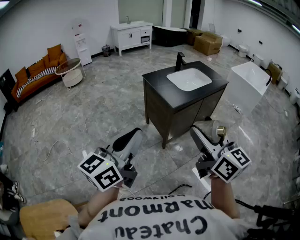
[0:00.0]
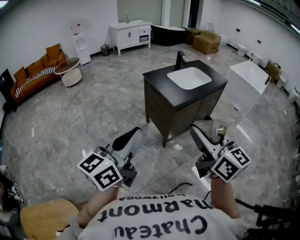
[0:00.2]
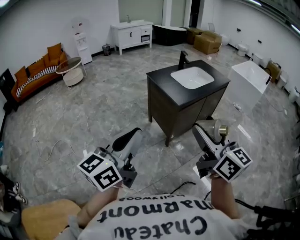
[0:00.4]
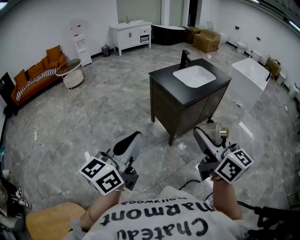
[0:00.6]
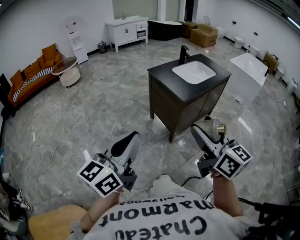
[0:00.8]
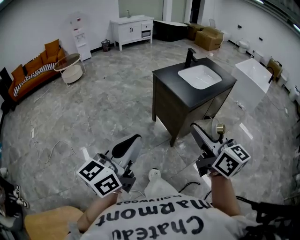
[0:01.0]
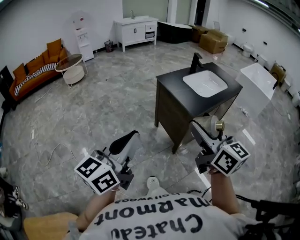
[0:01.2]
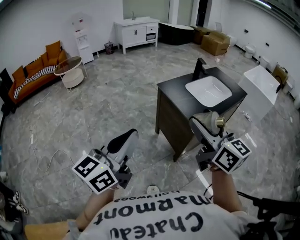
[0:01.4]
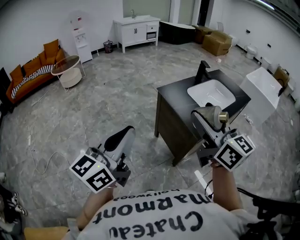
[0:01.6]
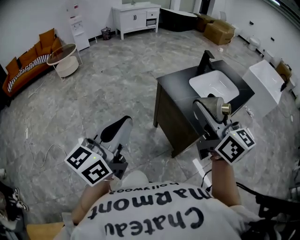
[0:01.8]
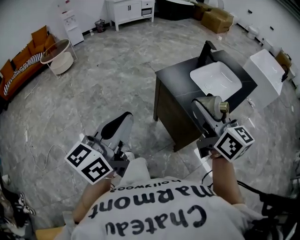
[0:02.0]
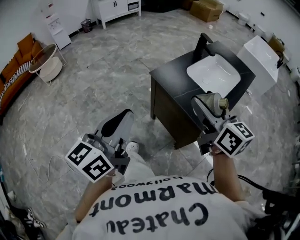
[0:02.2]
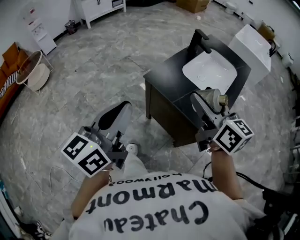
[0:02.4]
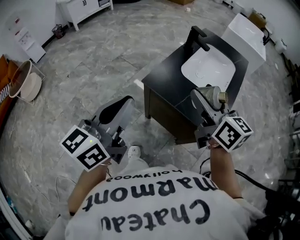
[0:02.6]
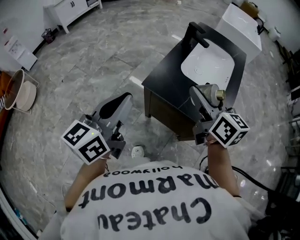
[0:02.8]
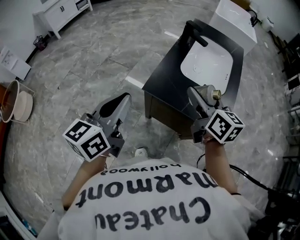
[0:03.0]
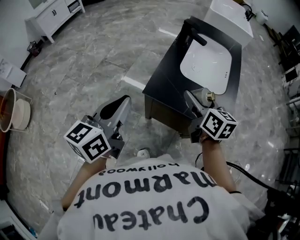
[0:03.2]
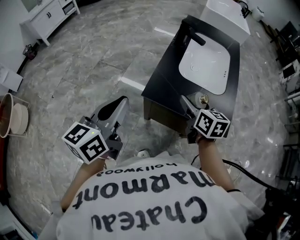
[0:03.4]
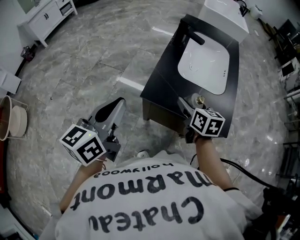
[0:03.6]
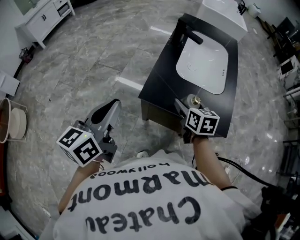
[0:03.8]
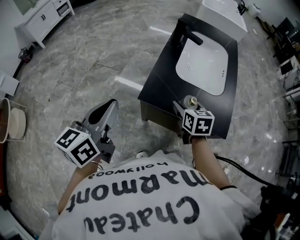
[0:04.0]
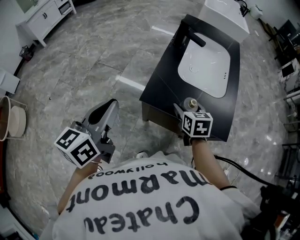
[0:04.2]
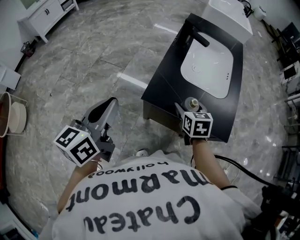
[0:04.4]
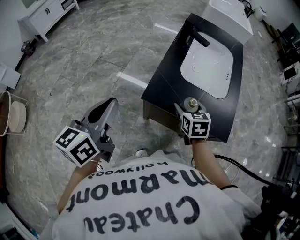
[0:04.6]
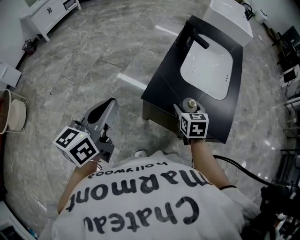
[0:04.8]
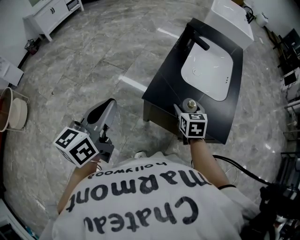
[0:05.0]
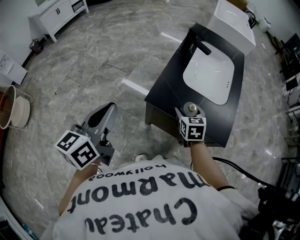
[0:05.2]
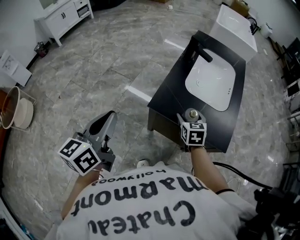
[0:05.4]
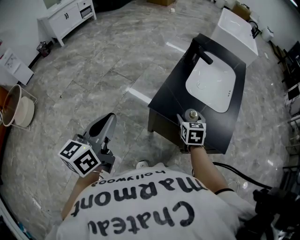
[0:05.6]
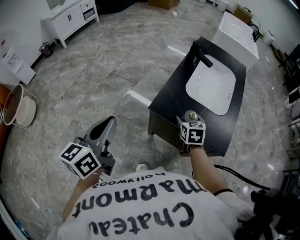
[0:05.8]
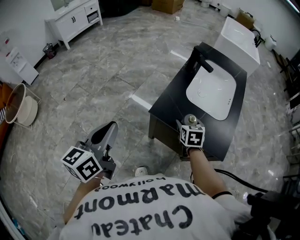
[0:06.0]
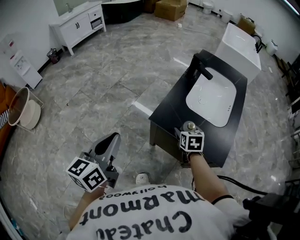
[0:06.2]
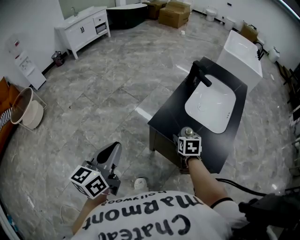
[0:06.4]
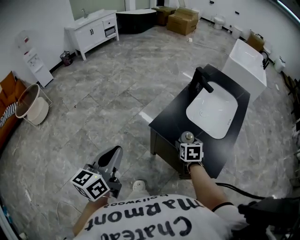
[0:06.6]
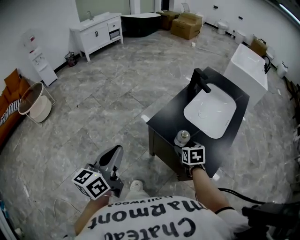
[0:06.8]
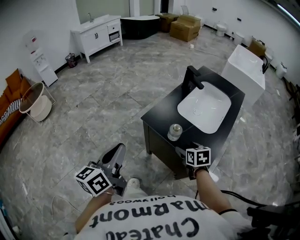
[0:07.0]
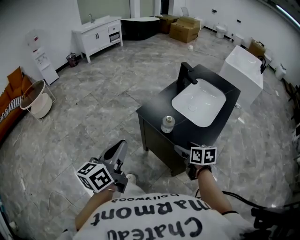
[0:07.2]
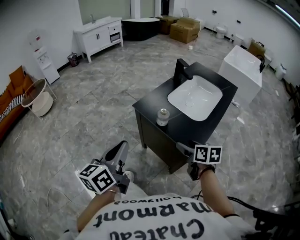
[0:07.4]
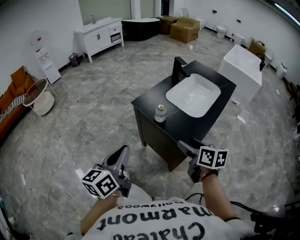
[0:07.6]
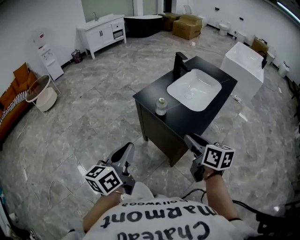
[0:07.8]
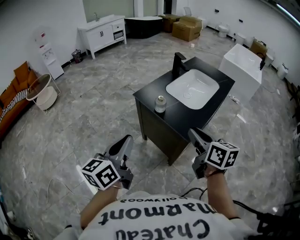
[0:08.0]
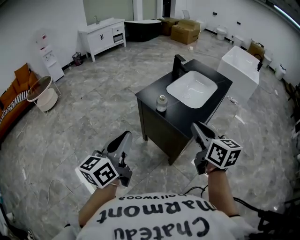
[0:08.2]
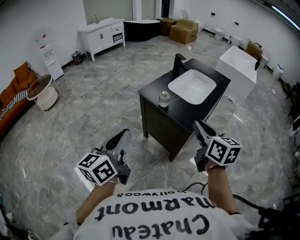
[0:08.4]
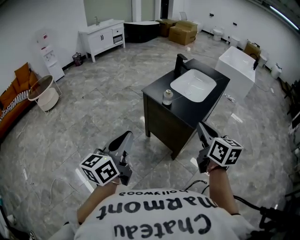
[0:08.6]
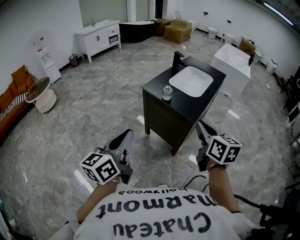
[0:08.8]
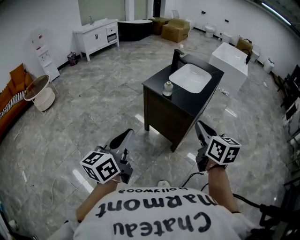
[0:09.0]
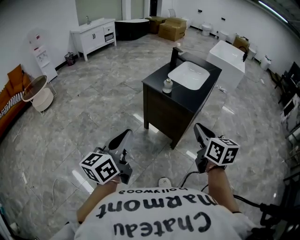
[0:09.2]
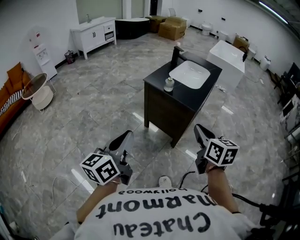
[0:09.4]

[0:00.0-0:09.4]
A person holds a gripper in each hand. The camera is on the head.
0:00.0 to 0:01.6: The grippers both shift forward and to the left by about 35 cm.
0:01.6 to 0:03.2: The right gripper ends up some 40 cm from where it was, and rotates some 50 degrees. Meanwhile the left gripper shifts by about 50 cm, and swivels roughly 40 degrees.
0:03.2 to 0:04.8: The left gripper moves roughly 5 cm, while the right gripper moves downward, approximately 15 cm, and rotates about 30 degrees.
0:04.8 to 0:06.2: The left gripper heads backward, covering approximately 10 cm.
0:06.2 to 0:07.8: The left gripper moves backward and to the right, approximately 35 cm. Meanwhile the right gripper heads backward, upward and to the right, covering roughly 35 cm, swivels roughly 40 degrees, and closes.
0:07.8 to 0:09.4: The right gripper goes approximately 25 cm backward, rotates some 20 degrees, and closes; the left gripper moves backward and to the left, some 25 cm.

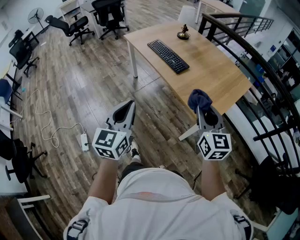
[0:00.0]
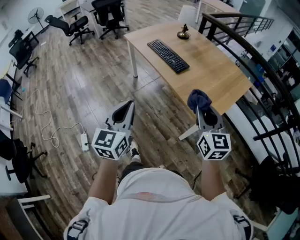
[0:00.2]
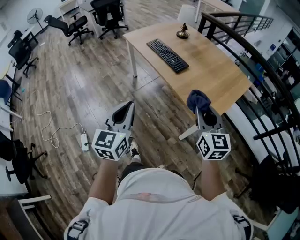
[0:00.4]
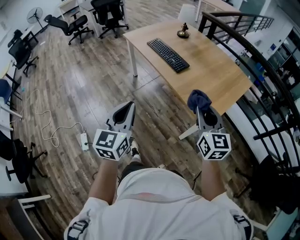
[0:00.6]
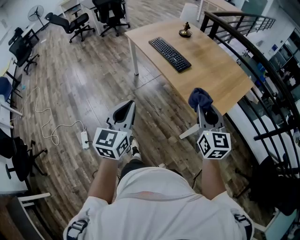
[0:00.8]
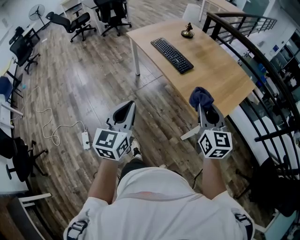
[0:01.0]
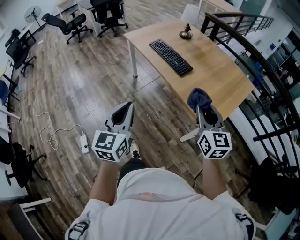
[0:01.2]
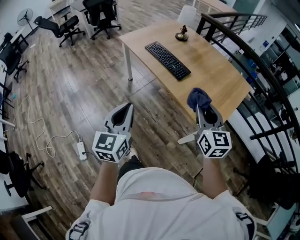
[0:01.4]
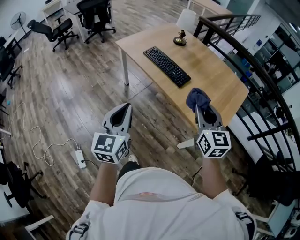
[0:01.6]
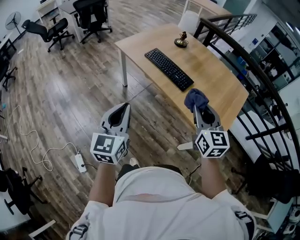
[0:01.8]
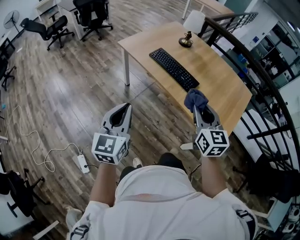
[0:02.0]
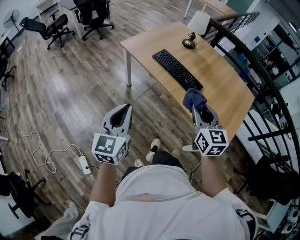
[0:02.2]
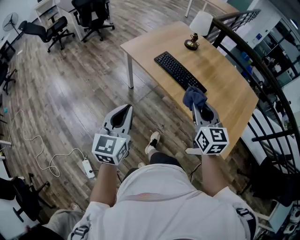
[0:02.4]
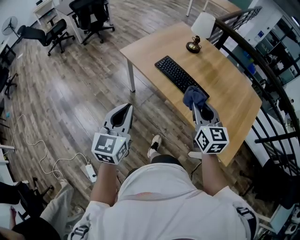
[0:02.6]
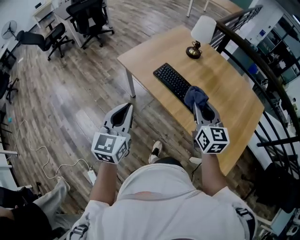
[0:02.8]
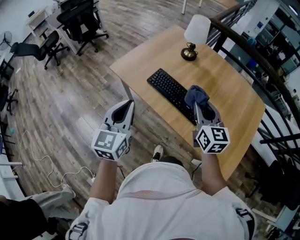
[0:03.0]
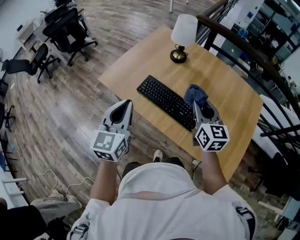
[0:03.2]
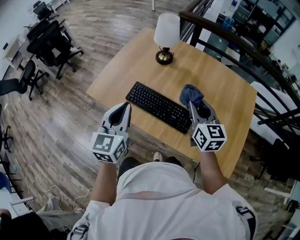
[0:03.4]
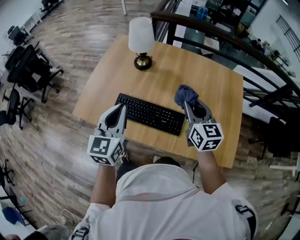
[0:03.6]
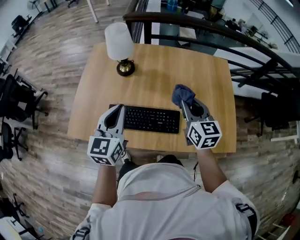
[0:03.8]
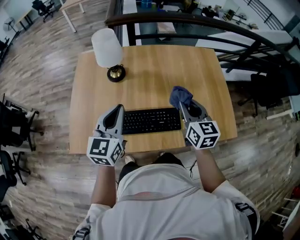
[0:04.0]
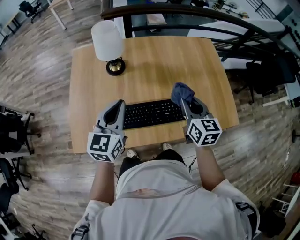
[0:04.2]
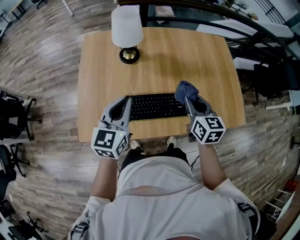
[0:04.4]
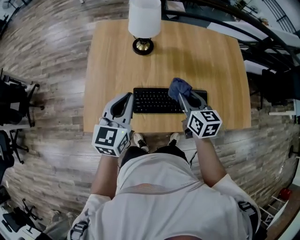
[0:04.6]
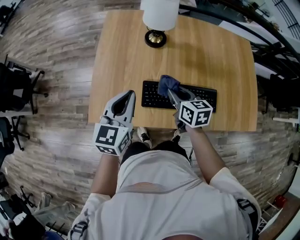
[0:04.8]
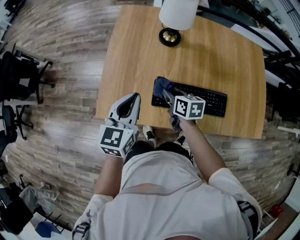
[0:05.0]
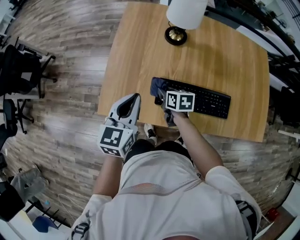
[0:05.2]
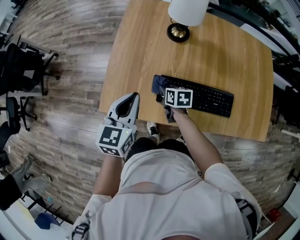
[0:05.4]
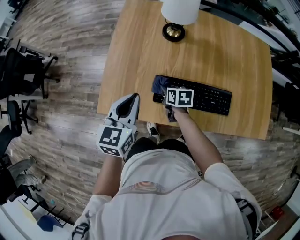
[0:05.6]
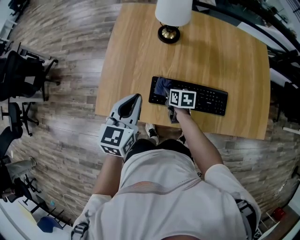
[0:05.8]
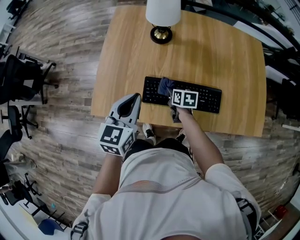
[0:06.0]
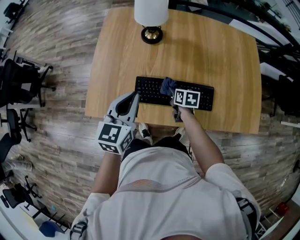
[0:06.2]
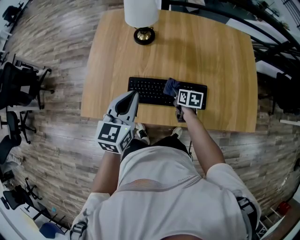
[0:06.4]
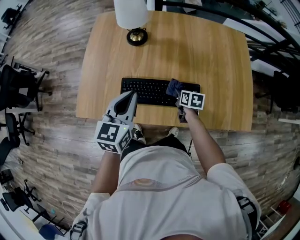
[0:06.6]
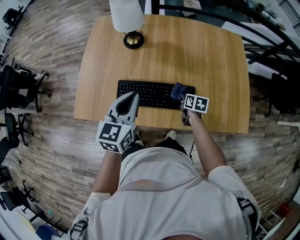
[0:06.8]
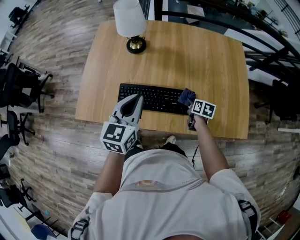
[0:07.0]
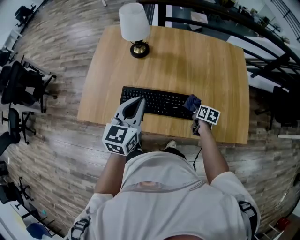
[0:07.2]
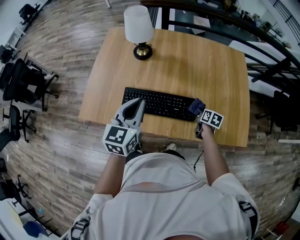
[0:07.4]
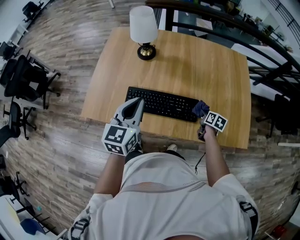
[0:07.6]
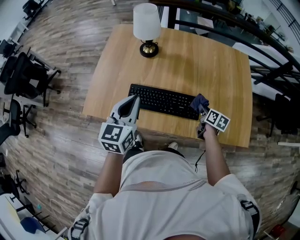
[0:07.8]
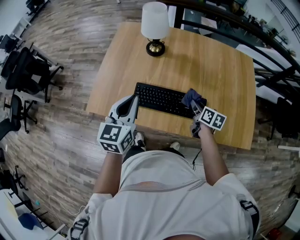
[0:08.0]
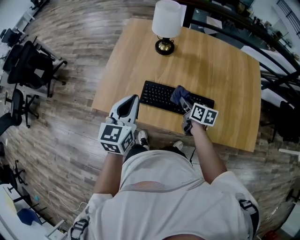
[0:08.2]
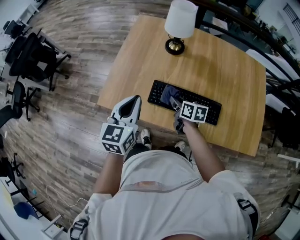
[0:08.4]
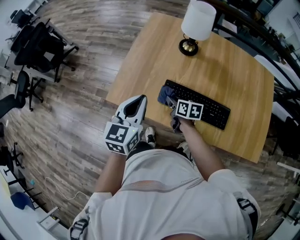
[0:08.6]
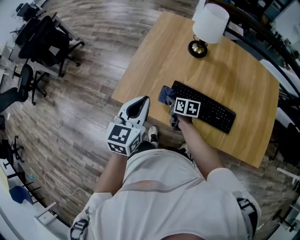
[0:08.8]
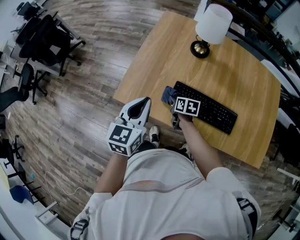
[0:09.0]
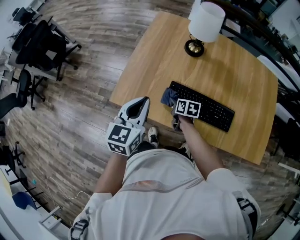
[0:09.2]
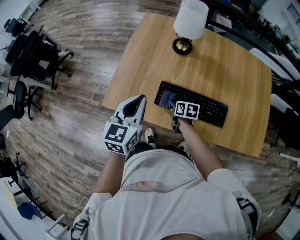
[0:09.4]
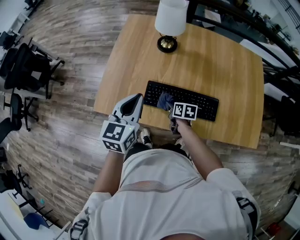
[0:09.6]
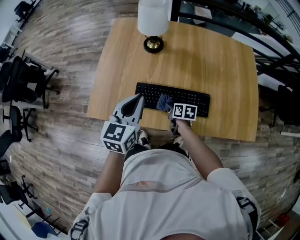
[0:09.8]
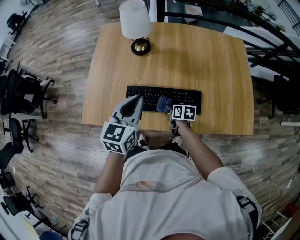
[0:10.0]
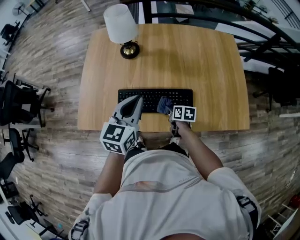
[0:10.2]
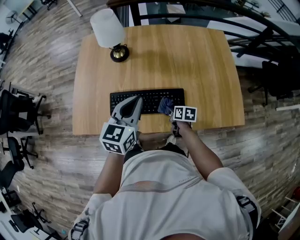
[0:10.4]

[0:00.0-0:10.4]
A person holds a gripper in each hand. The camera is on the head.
0:00.0 to 0:01.4: Both grippers travel together forward and to the left, about 10 cm.
0:01.4 to 0:03.0: The grippers both shift forward by approximately 40 cm.
0:03.0 to 0:04.4: The right gripper ends up some 15 cm from where it was, and changes its angle by some 50 degrees. The left gripper ends up about 30 cm from where it was, and rotates some 50 degrees.
0:04.4 to 0:06.0: The right gripper goes some 25 cm downward, and changes its angle by about 40 degrees.
0:06.0 to 0:07.4: The right gripper travels to the right by roughly 30 cm. The left gripper travels to the right by some 15 cm.
0:07.4 to 0:09.0: The left gripper ends up roughly 25 cm from where it was. Meanwhile the right gripper goes upward and returns, some 10 cm each way, and swivels roughly 30 degrees.
0:09.0 to 0:10.4: The two grippers go approximately 30 cm to the right. The left gripper swivels about 30 degrees, while the right gripper changes its angle by about 20 degrees.

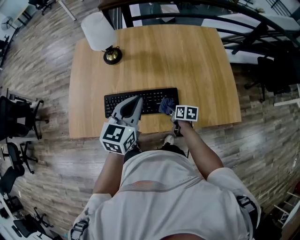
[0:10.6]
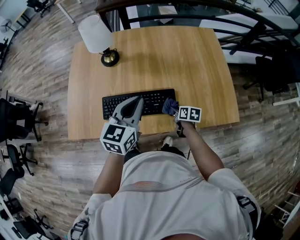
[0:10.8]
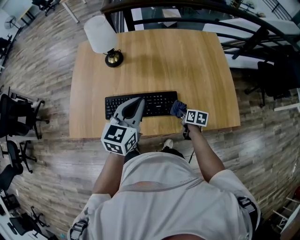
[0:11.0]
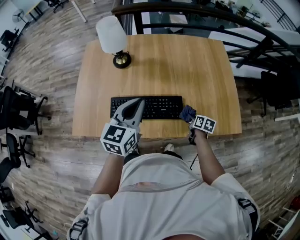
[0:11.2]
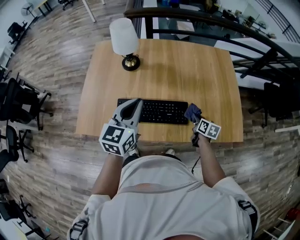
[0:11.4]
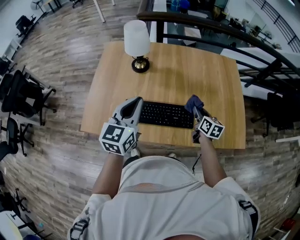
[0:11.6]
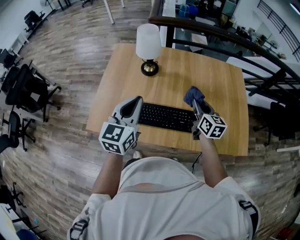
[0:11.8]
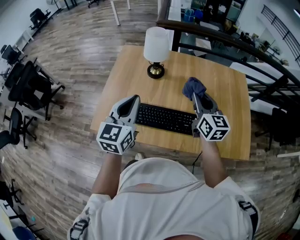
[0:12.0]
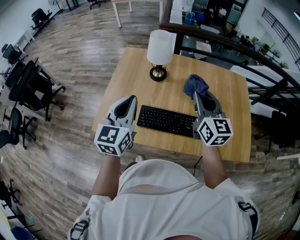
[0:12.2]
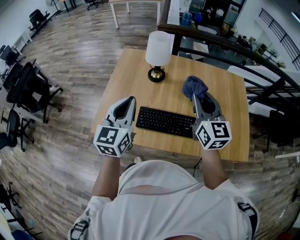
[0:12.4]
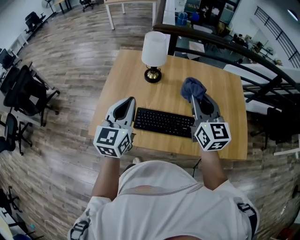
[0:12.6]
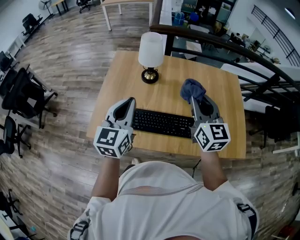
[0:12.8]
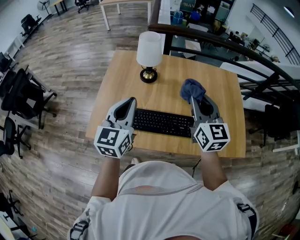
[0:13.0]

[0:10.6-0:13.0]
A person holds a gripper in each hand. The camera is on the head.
0:10.6 to 0:11.8: The right gripper is displaced upward by approximately 25 cm, and tilts its fingers roughly 30 degrees upward. Meanwhile the left gripper goes roughly 15 cm to the left and upward.
0:11.8 to 0:13.0: The right gripper heads upward and to the left, covering roughly 15 cm, and changes its angle by roughly 20 degrees.

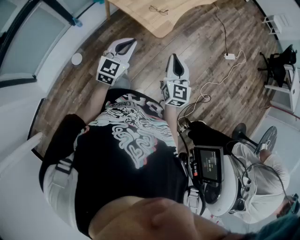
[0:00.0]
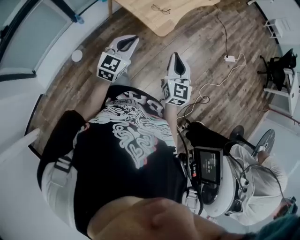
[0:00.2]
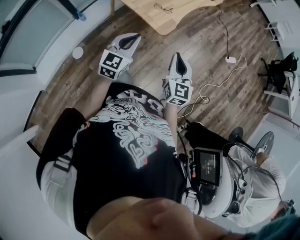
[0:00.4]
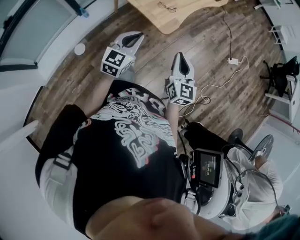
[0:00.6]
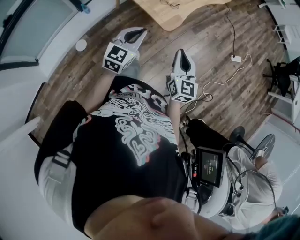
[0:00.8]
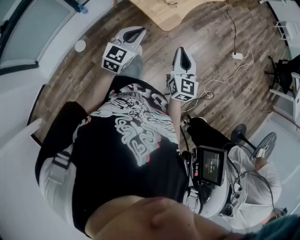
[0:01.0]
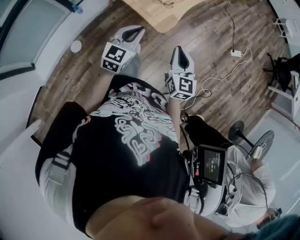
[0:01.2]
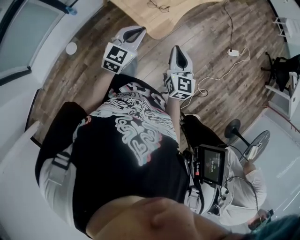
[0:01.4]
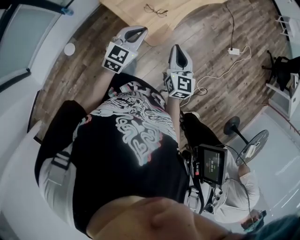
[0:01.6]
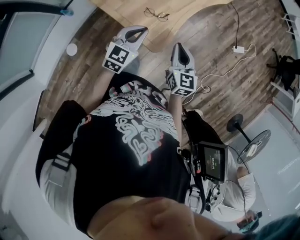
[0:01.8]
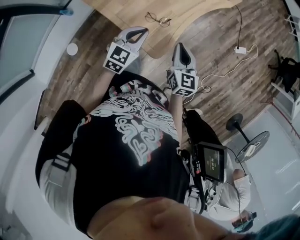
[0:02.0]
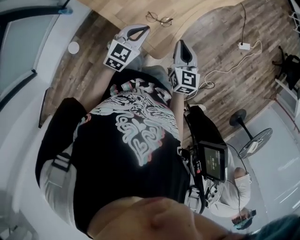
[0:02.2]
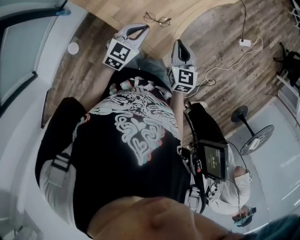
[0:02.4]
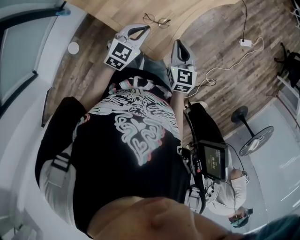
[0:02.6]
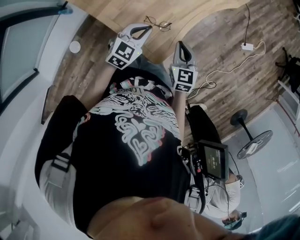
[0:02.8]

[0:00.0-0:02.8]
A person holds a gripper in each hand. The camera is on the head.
0:00.0 to 0:01.4: Both grippers travel together forward, approximately 20 cm.
0:01.4 to 0:02.8: Both grippers move forward and downward, approximately 30 cm. The right gripper changes its angle by roughly 20 degrees.
